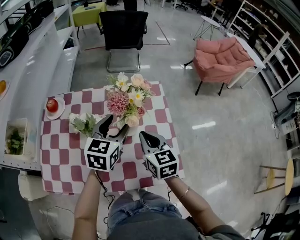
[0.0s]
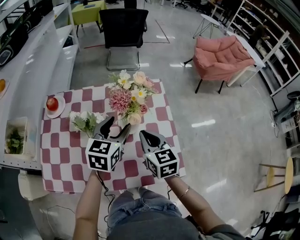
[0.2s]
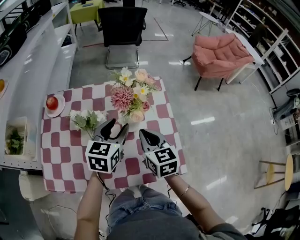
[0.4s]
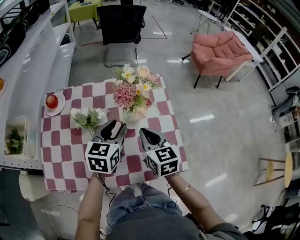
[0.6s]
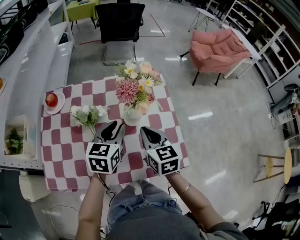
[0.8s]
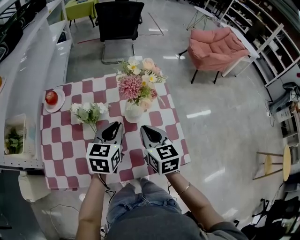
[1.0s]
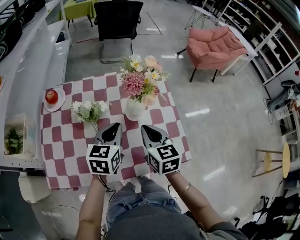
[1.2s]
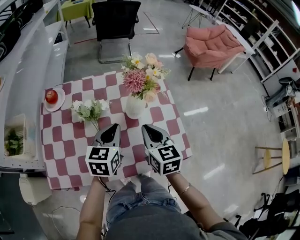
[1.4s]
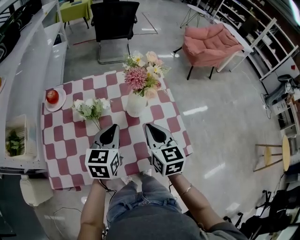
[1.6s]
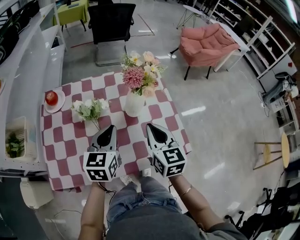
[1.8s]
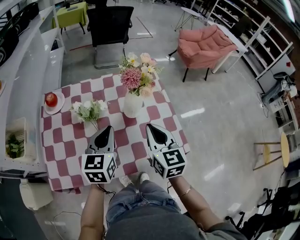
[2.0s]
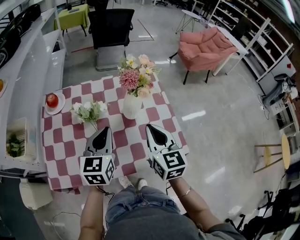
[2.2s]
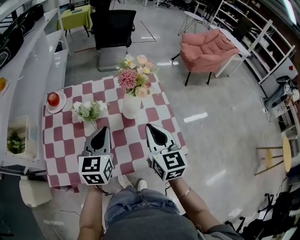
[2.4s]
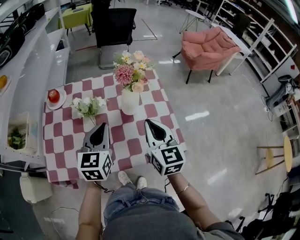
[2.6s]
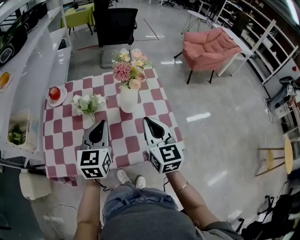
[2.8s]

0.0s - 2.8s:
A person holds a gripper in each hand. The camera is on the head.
0.0s - 1.4s: The right gripper is displaced backward by some 5 cm. The left gripper shifts approximately 10 cm backward and to the left, and closes up.
1.4s - 2.8s: The left gripper moves backward and upward, some 10 cm. The right gripper heads upward and backward, covering approximately 10 cm.

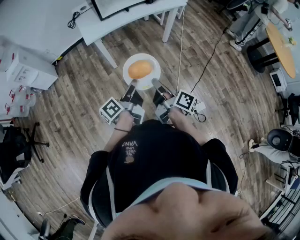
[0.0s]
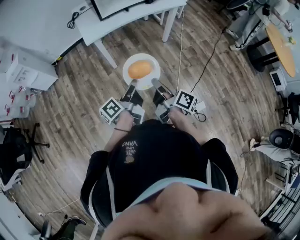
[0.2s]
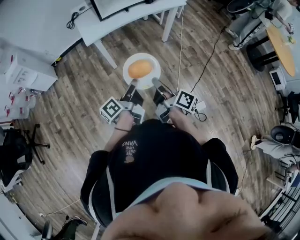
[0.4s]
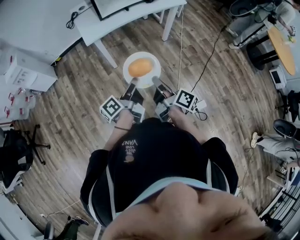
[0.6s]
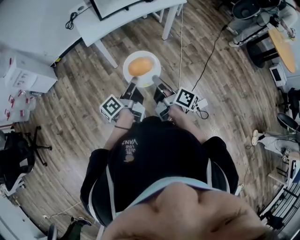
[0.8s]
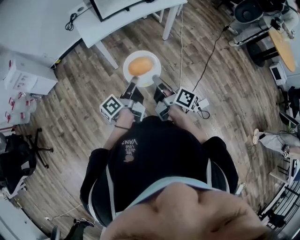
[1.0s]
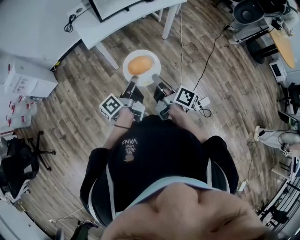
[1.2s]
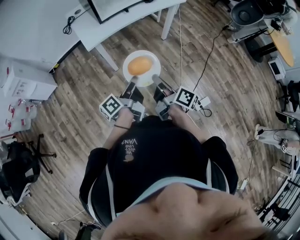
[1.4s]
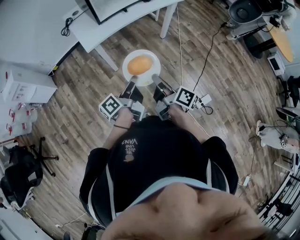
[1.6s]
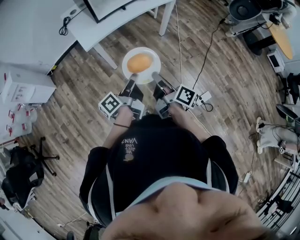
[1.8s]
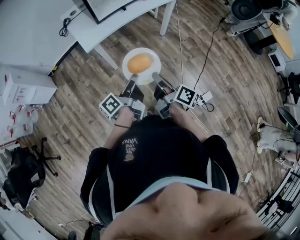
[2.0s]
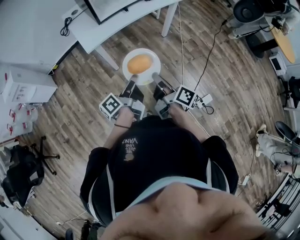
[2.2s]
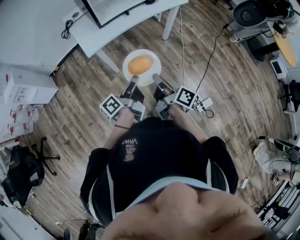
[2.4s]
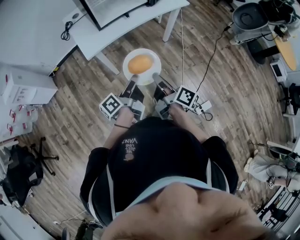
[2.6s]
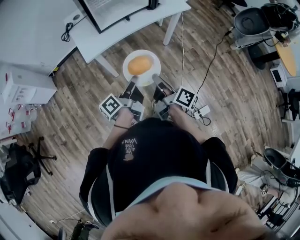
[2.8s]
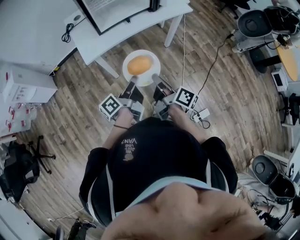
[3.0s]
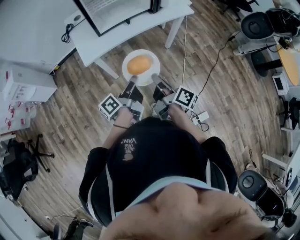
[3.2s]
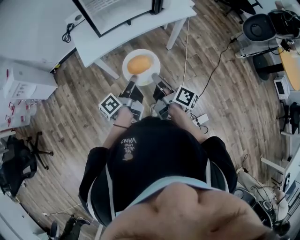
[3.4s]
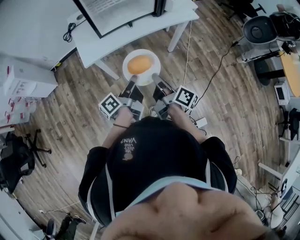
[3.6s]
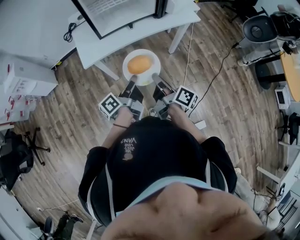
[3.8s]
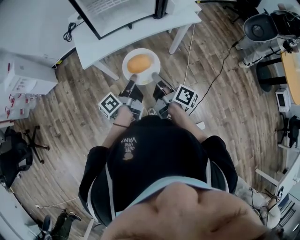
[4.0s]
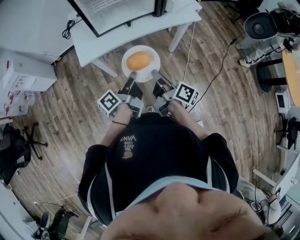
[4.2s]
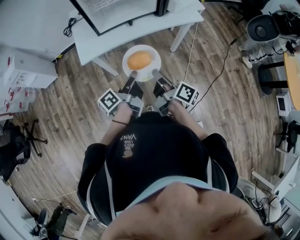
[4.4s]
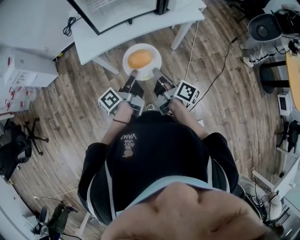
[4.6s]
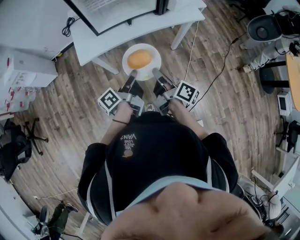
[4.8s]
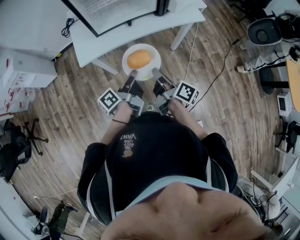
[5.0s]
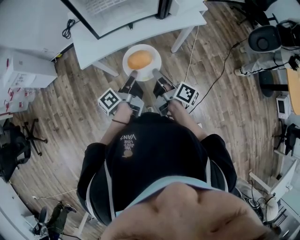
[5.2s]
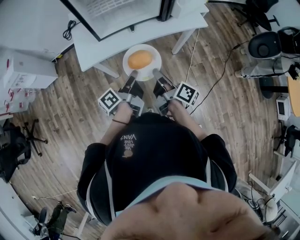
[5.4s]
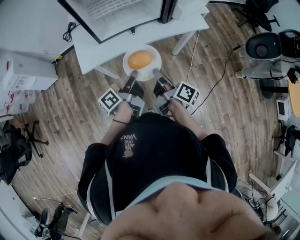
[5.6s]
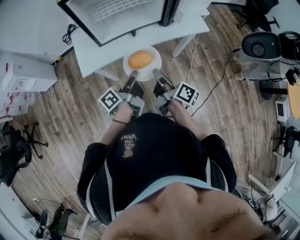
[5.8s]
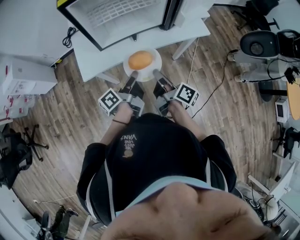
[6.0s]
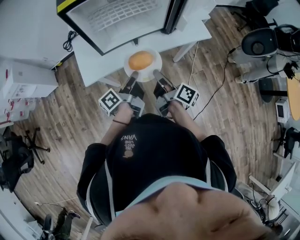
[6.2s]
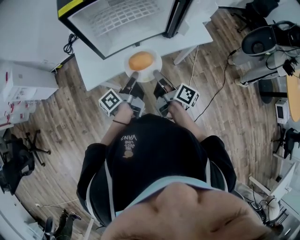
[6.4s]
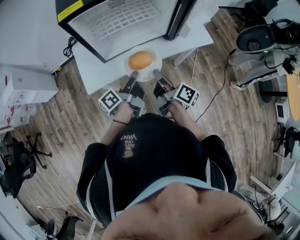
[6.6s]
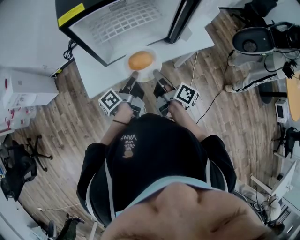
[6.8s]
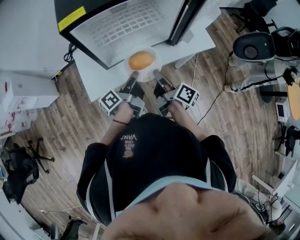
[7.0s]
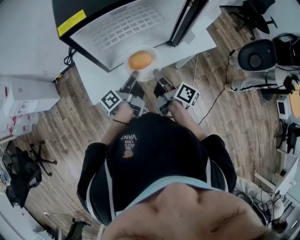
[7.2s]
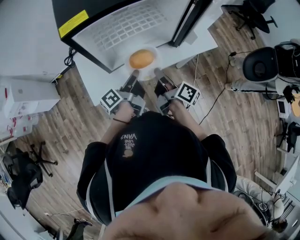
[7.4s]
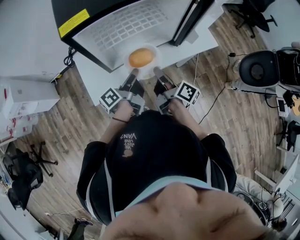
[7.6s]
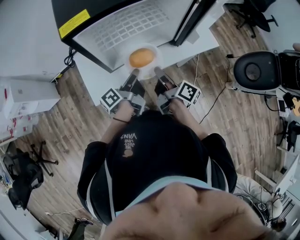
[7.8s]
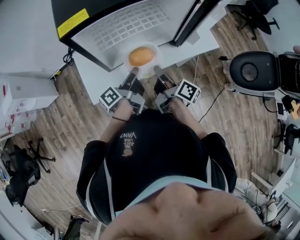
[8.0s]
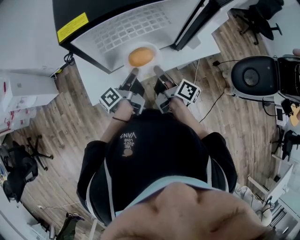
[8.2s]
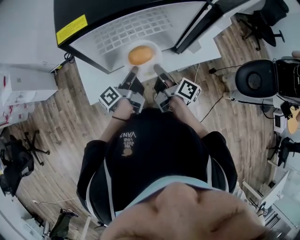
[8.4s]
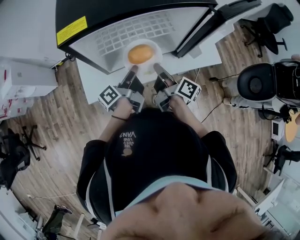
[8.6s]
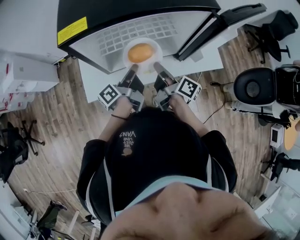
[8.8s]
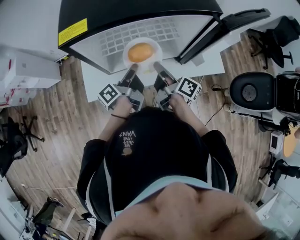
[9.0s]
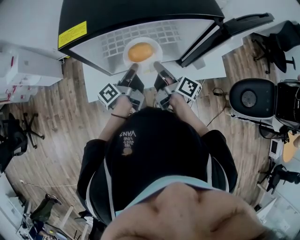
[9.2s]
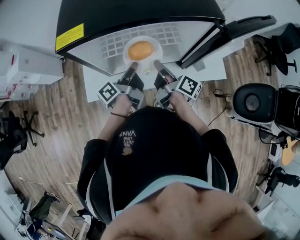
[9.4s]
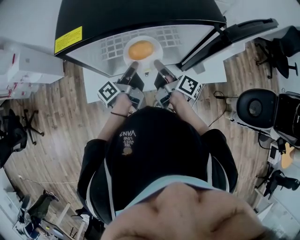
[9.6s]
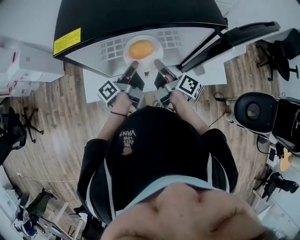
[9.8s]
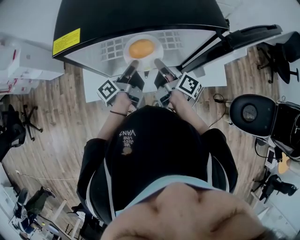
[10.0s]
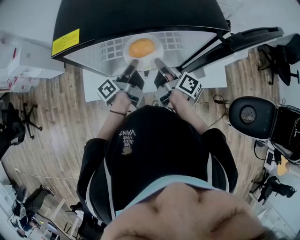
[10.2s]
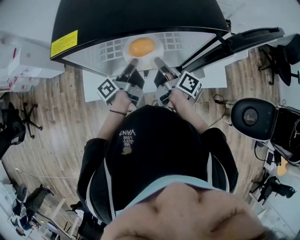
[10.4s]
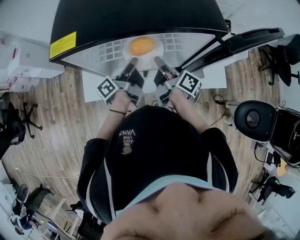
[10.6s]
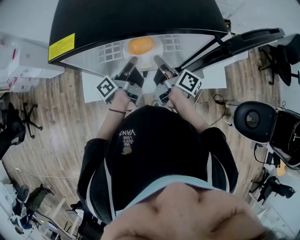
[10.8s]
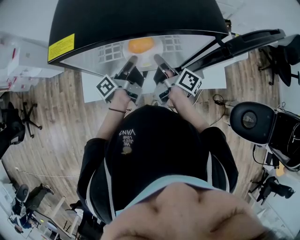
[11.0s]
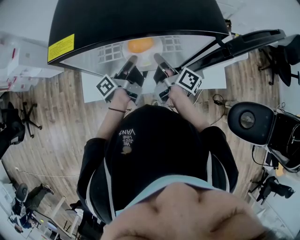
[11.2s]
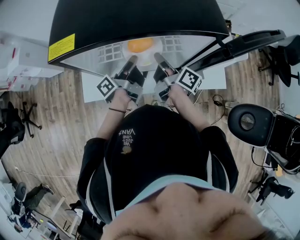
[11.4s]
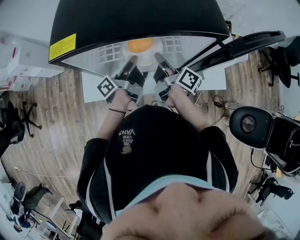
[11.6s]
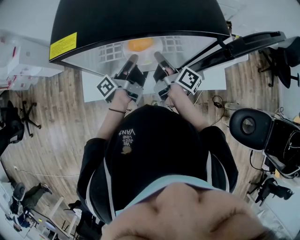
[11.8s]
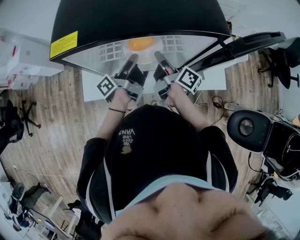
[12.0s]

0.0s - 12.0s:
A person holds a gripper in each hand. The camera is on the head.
0.0s - 1.6s: Both grippers travel together forward and to the left, approximately 10 cm.
1.6s - 3.0s: Both grippers move forward, approximately 10 cm.
3.0s - 4.4s: Both grippers move forward and to the right, roughly 10 cm.
4.4s - 6.0s: The two grippers go approximately 15 cm forward.
6.0s - 7.6s: The left gripper heads forward, covering roughly 15 cm; the right gripper goes roughly 15 cm forward and to the left.
7.6s - 9.0s: The grippers both shift forward by about 10 cm.
9.0s - 10.4s: The grippers both shift forward by about 5 cm.
10.4s - 12.0s: There are only small adjustments of the grippers.

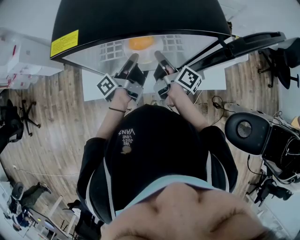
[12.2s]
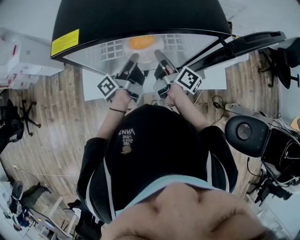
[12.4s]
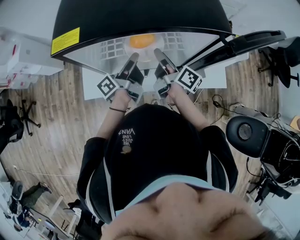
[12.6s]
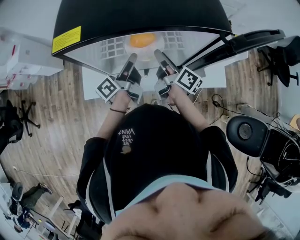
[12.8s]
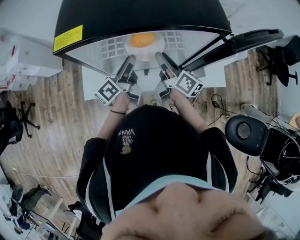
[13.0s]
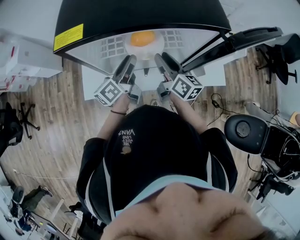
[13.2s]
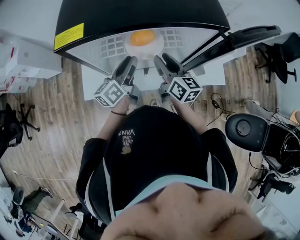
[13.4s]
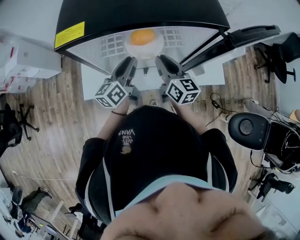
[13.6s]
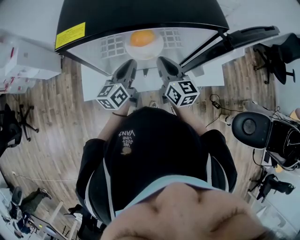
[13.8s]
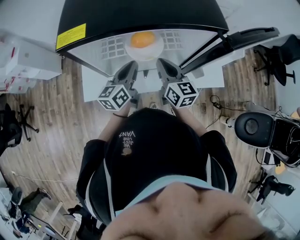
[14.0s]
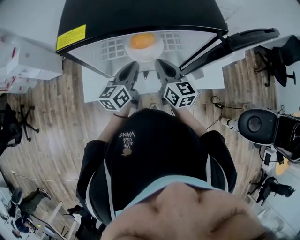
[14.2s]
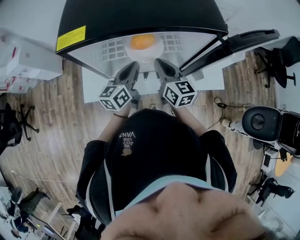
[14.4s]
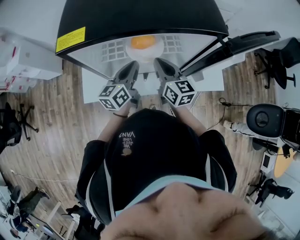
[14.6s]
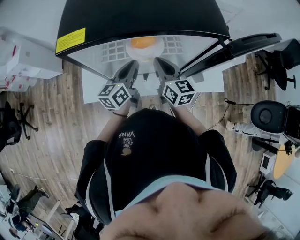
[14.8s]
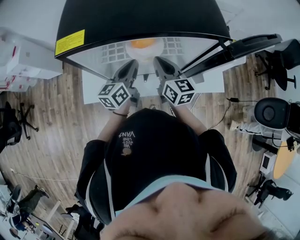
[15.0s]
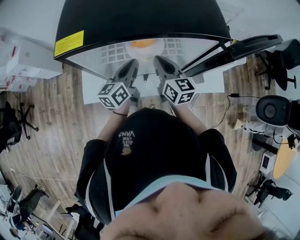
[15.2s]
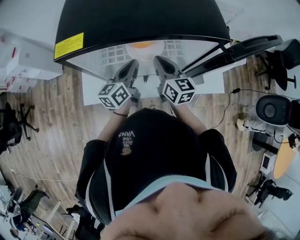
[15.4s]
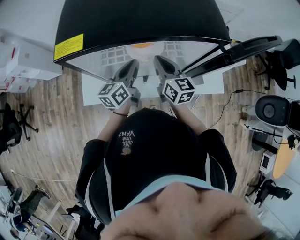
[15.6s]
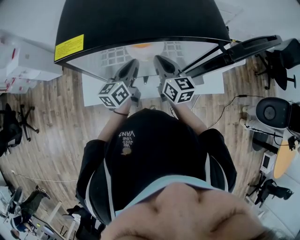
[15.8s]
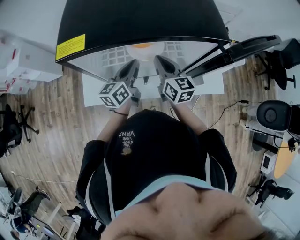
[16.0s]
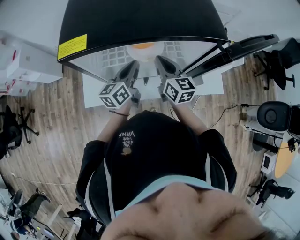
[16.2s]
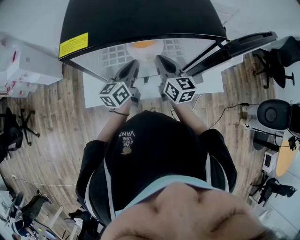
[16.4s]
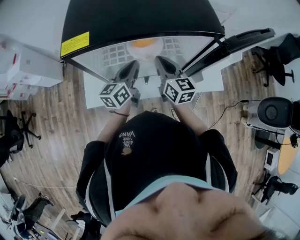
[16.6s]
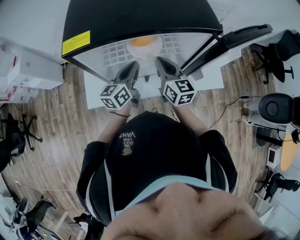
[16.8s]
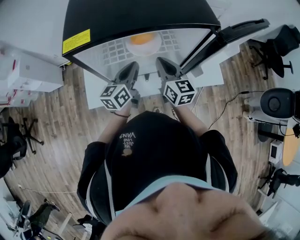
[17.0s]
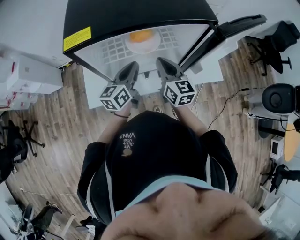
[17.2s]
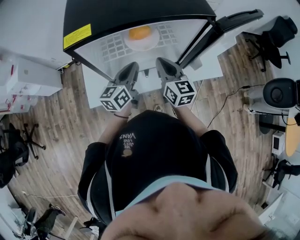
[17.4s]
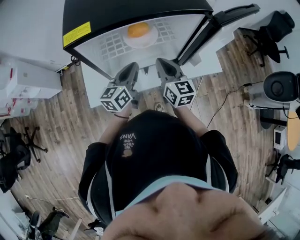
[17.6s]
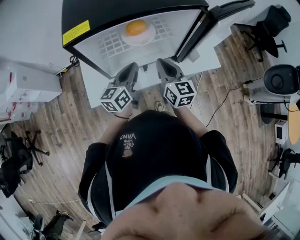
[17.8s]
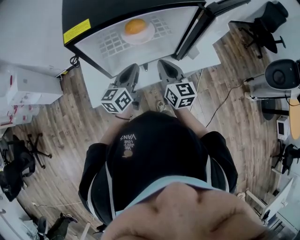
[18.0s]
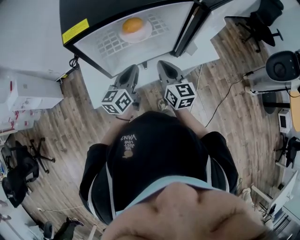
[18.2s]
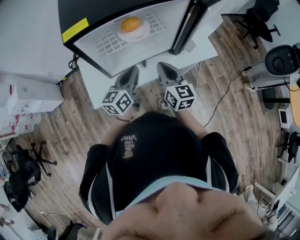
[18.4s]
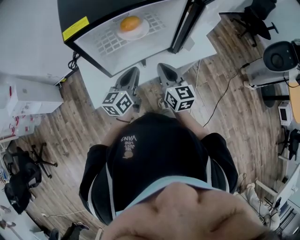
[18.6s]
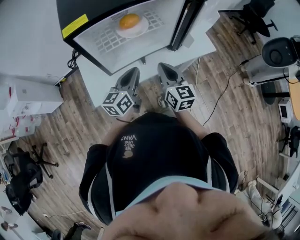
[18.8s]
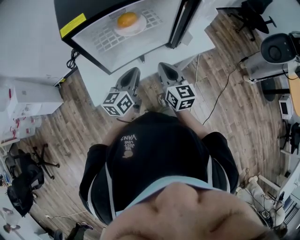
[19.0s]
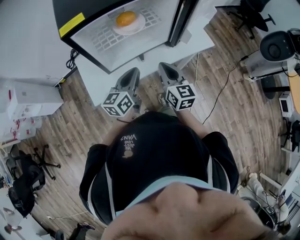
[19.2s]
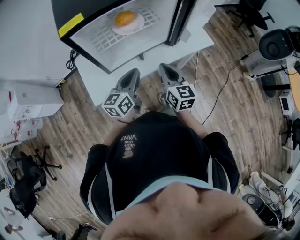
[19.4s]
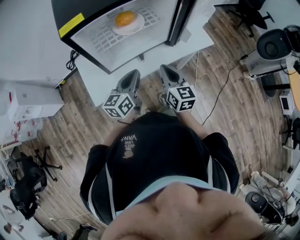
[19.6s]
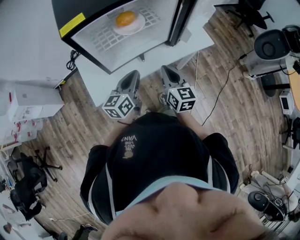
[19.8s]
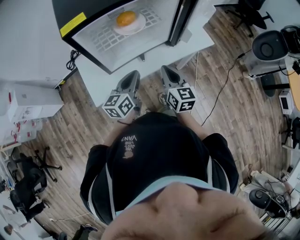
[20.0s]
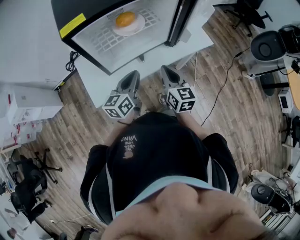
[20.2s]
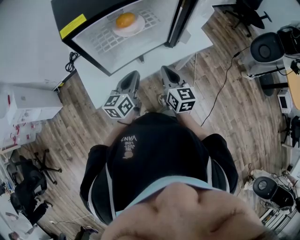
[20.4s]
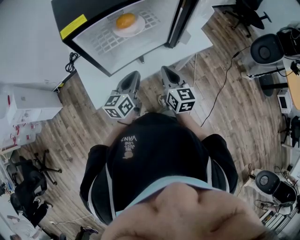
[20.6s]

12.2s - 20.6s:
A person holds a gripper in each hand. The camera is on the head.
12.2s - 13.6s: The left gripper rolls clockwise, seen from behind, by approximately 50 degrees. The right gripper twists roughly 50 degrees counterclockwise, seen from behind.
13.6s - 15.0s: The left gripper closes up.
15.0s - 16.4s: There are only small adjustments of the grippers.
16.4s - 17.8s: The grippers both shift backward by about 10 cm.
17.8s - 19.2s: The grippers both shift backward by some 10 cm.
19.2s - 20.6s: The grippers move only a little.

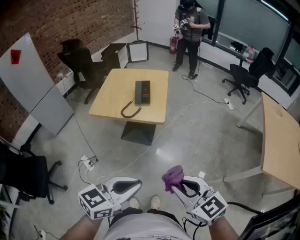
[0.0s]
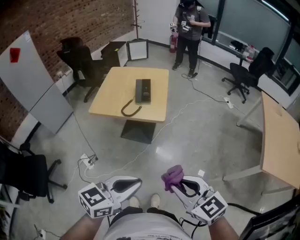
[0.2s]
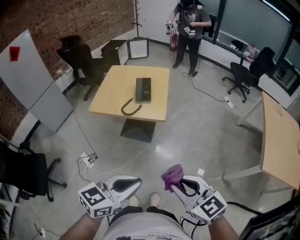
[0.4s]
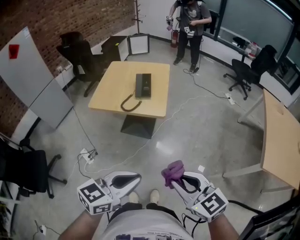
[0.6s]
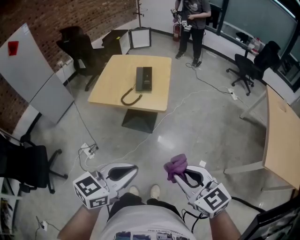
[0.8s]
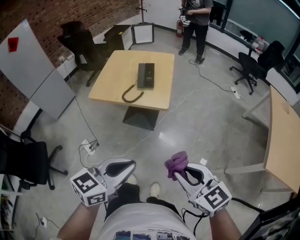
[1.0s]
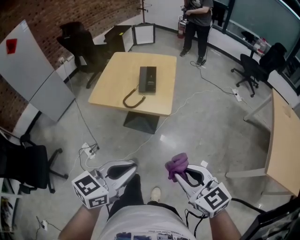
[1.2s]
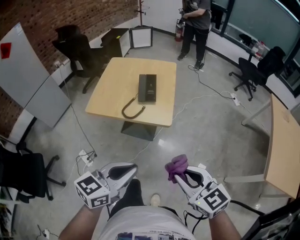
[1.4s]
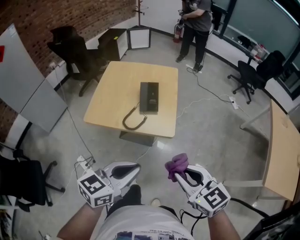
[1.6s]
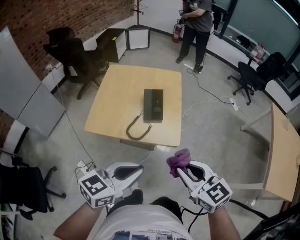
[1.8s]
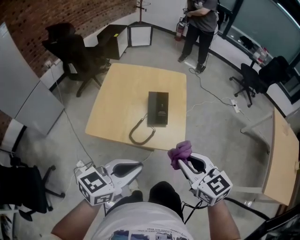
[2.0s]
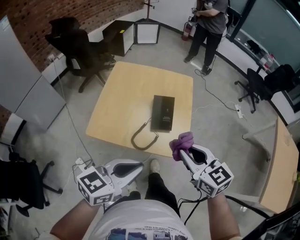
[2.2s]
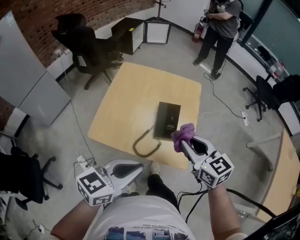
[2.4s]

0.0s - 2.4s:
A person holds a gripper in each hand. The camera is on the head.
0.0s - 1.2s: The grippers both shift forward by approximately 5 cm.
1.2s - 2.4s: The left gripper heads forward and to the left, covering about 30 cm. The right gripper is displaced forward by some 40 cm.
